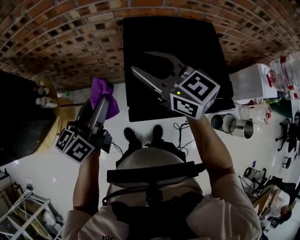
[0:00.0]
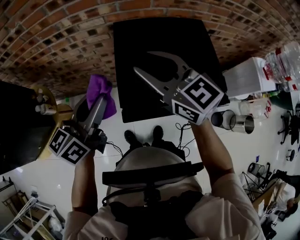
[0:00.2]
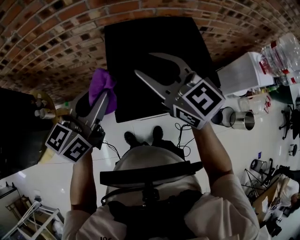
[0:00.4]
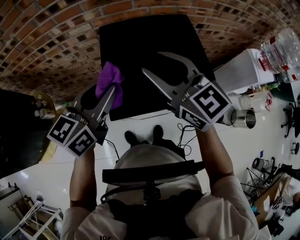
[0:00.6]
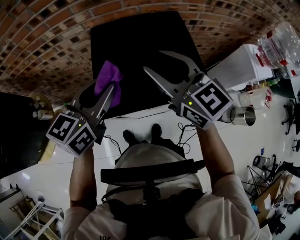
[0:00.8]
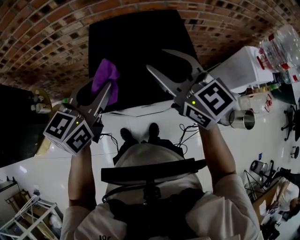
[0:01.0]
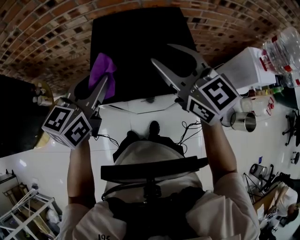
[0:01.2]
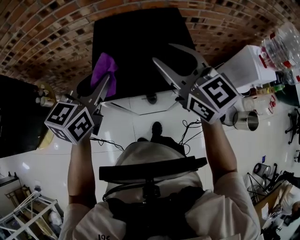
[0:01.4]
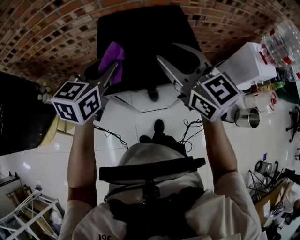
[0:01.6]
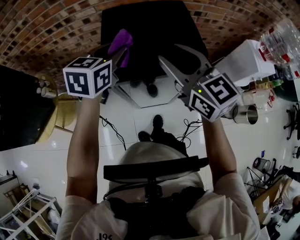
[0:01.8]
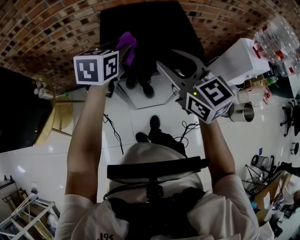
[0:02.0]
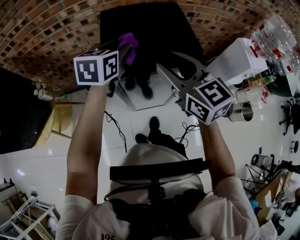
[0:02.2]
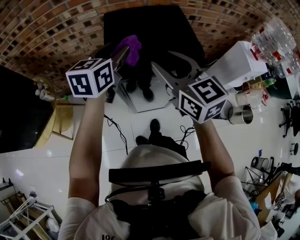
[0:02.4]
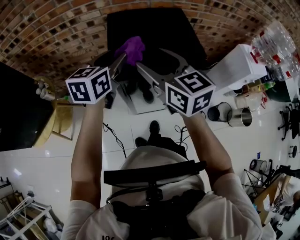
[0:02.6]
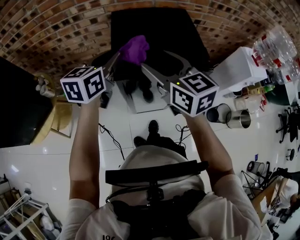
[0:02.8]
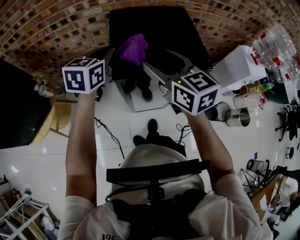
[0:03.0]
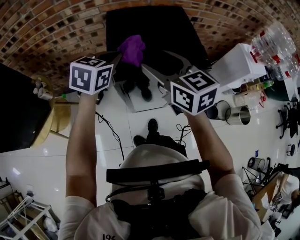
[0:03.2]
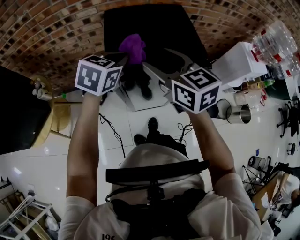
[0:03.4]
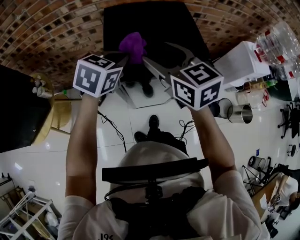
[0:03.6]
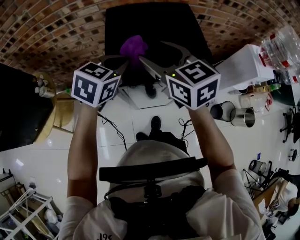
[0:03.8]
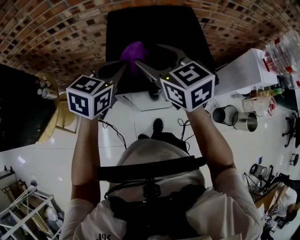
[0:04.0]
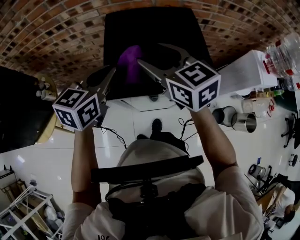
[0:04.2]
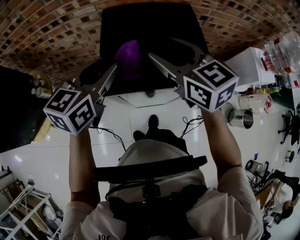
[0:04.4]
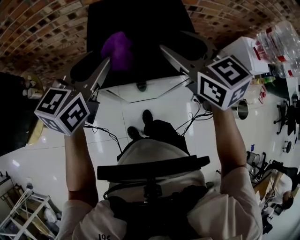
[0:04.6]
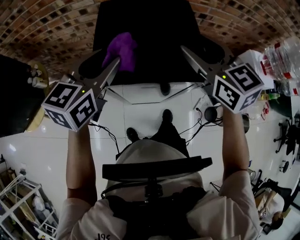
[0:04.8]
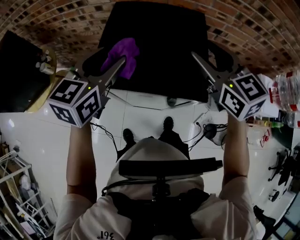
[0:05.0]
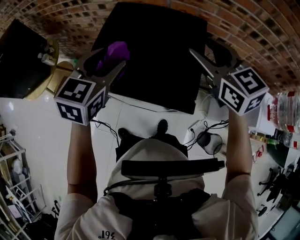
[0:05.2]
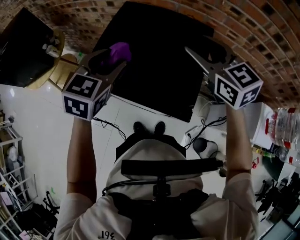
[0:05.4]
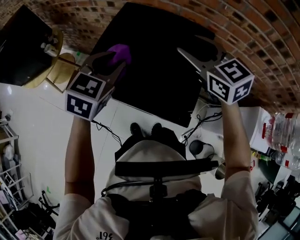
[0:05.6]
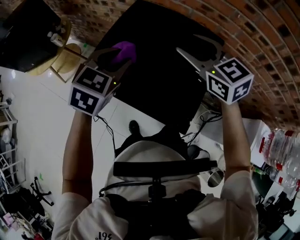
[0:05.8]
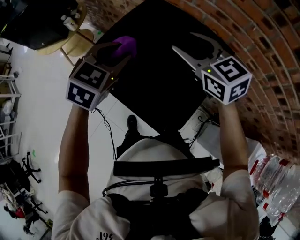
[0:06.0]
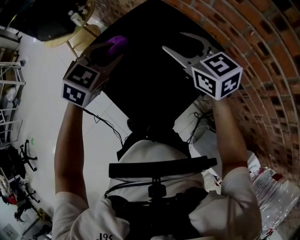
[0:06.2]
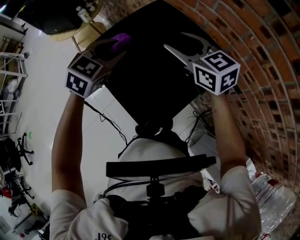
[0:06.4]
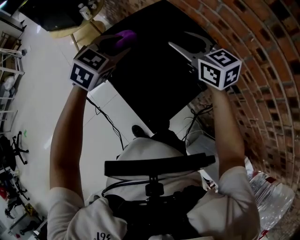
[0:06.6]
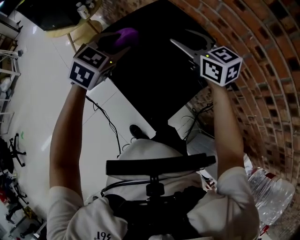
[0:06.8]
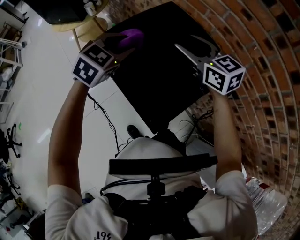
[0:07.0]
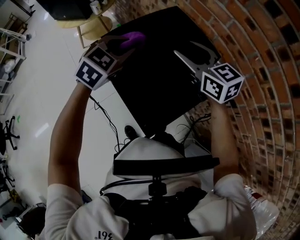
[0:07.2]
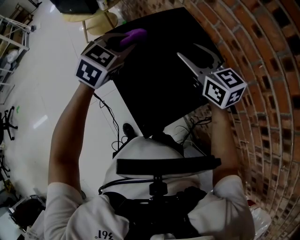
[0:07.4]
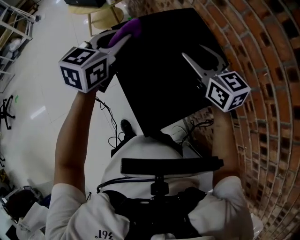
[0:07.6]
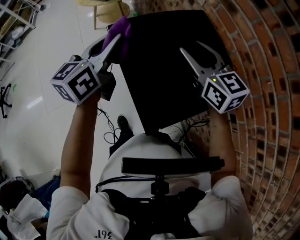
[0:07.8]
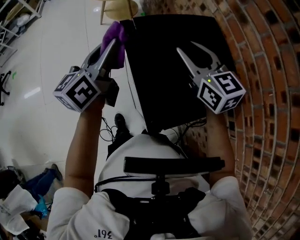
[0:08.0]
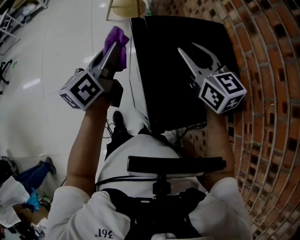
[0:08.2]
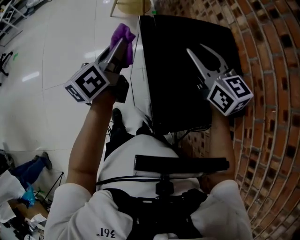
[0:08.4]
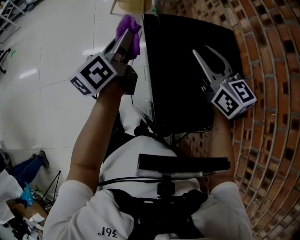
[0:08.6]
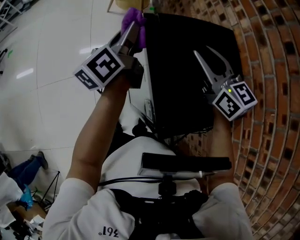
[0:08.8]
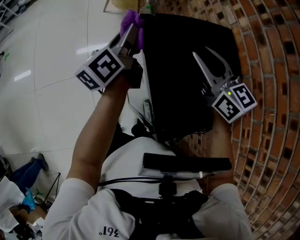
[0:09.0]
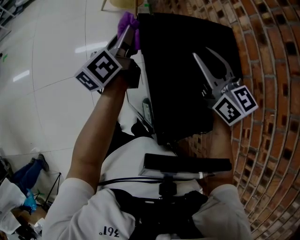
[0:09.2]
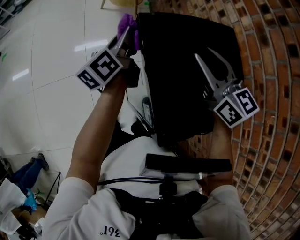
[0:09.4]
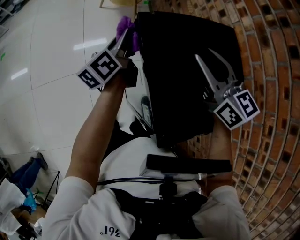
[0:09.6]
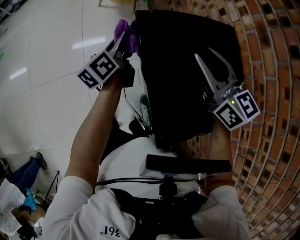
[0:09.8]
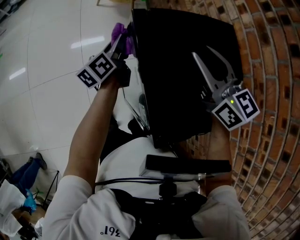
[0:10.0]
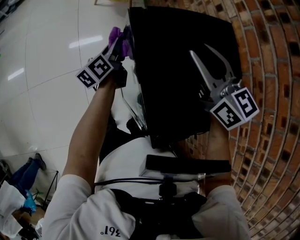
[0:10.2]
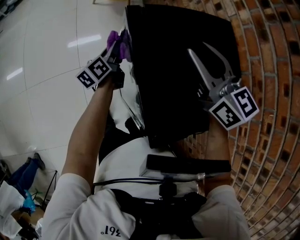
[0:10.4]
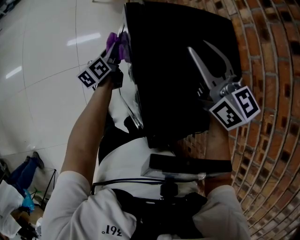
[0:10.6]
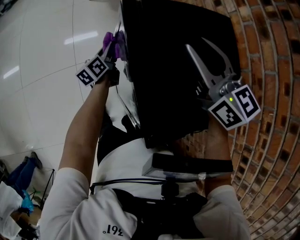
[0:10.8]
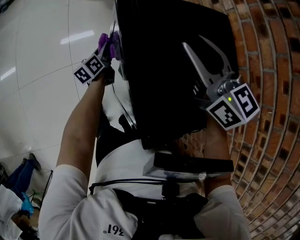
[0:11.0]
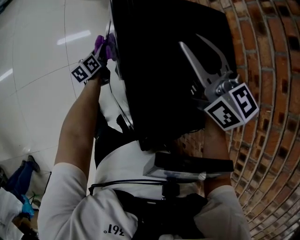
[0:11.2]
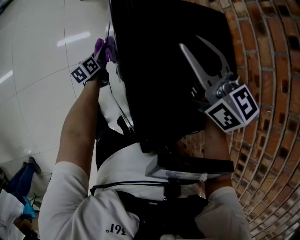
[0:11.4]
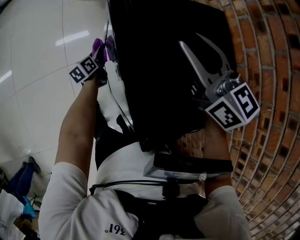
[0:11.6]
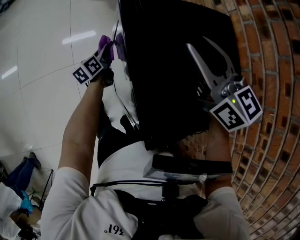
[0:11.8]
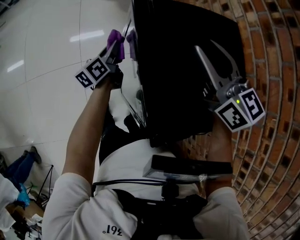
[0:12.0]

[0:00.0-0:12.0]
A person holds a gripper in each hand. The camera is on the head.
0:00.0 to 0:01.6: The left gripper heads to the right, covering roughly 15 cm, and swivels approximately 40 degrees; the right gripper shifts some 20 cm to the right and backward.
0:01.6 to 0:03.0: The two grippers go about 5 cm to the left. The left gripper closes its fingers; the right gripper opens up.
0:03.0 to 0:04.4: The right gripper is displaced forward by about 5 cm, while the left gripper opens up.
0:04.4 to 0:06.0: The left gripper ends up about 10 cm from where it was, turns by roughly 40 degrees, and opens, then closes once more, while the right gripper ends up approximately 15 cm from where it was, and swivels about 40 degrees.
0:06.0 to 0:07.6: The left gripper shifts some 5 cm to the left, and swivels about 40 degrees.
0:07.6 to 0:09.0: The right gripper is displaced to the left by roughly 10 cm. The left gripper goes about 15 cm to the left and downward, and swivels roughly 60 degrees.
0:09.0 to 0:10.4: The left gripper heads downward, covering approximately 20 cm.
0:10.4 to 0:12.0: The left gripper travels downward and back again, about 15 cm each way.

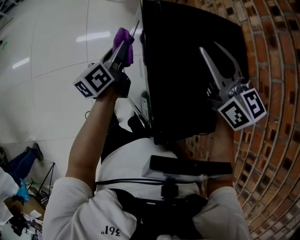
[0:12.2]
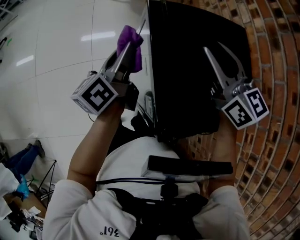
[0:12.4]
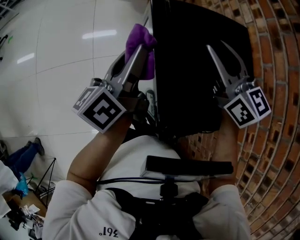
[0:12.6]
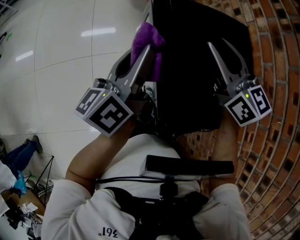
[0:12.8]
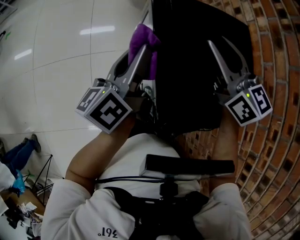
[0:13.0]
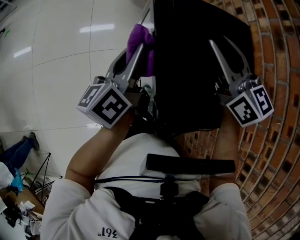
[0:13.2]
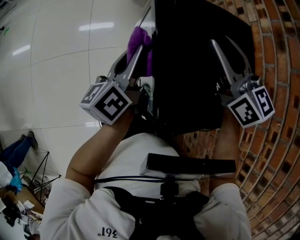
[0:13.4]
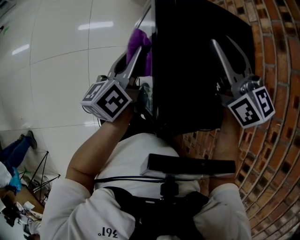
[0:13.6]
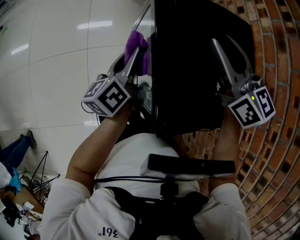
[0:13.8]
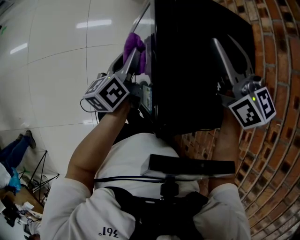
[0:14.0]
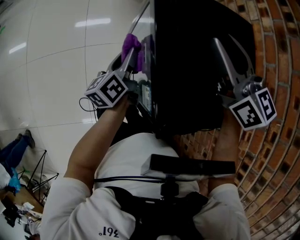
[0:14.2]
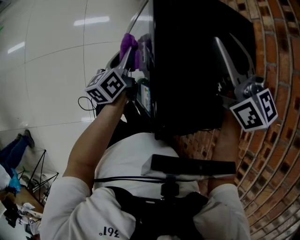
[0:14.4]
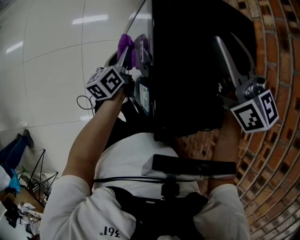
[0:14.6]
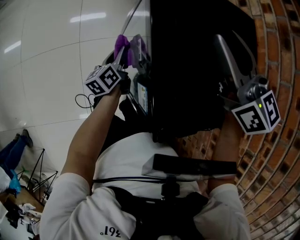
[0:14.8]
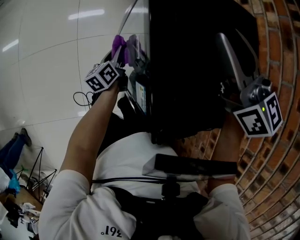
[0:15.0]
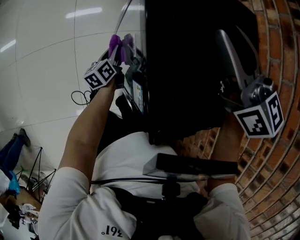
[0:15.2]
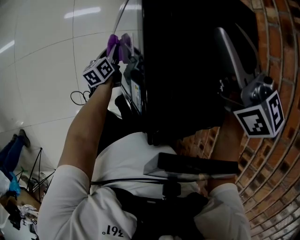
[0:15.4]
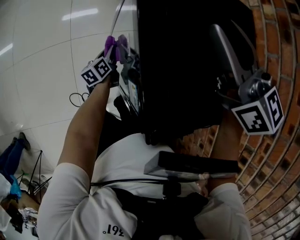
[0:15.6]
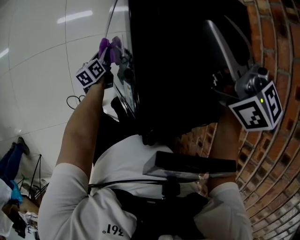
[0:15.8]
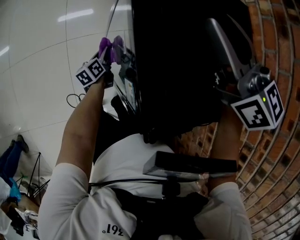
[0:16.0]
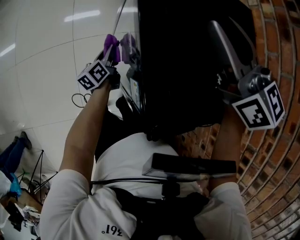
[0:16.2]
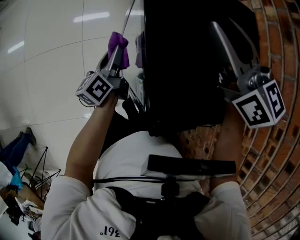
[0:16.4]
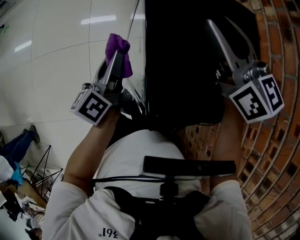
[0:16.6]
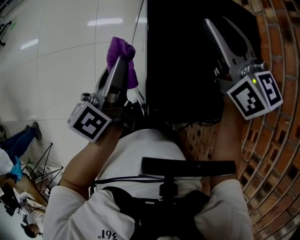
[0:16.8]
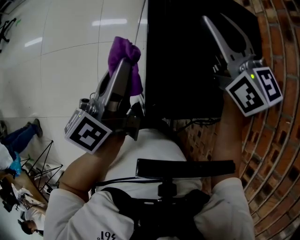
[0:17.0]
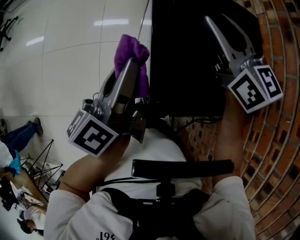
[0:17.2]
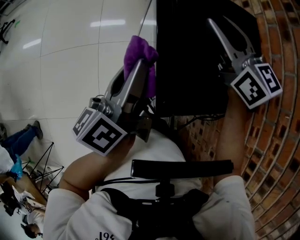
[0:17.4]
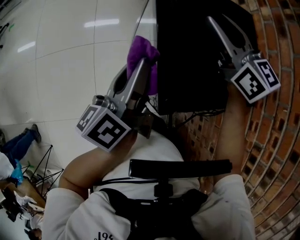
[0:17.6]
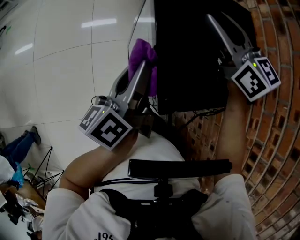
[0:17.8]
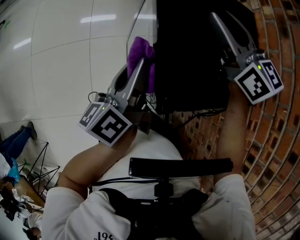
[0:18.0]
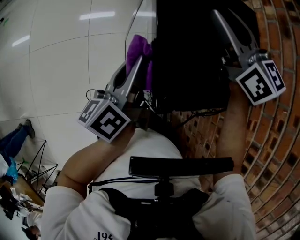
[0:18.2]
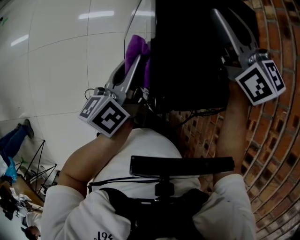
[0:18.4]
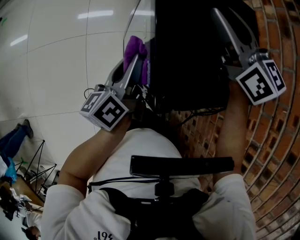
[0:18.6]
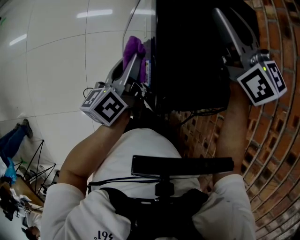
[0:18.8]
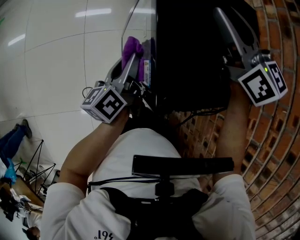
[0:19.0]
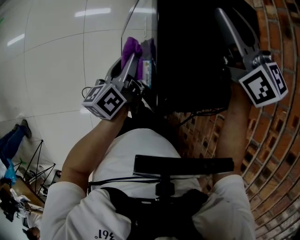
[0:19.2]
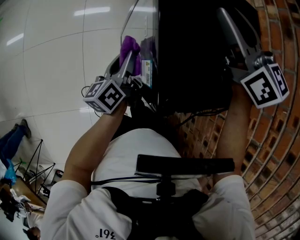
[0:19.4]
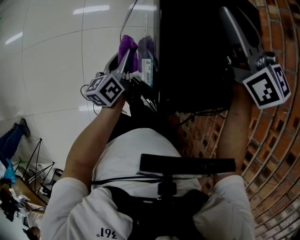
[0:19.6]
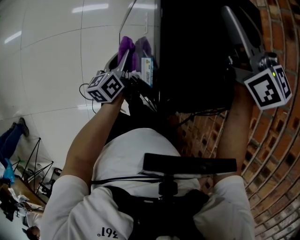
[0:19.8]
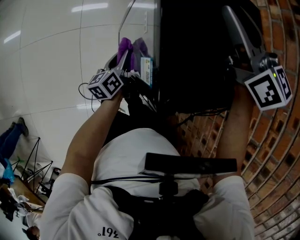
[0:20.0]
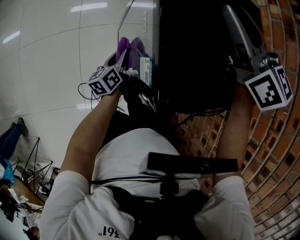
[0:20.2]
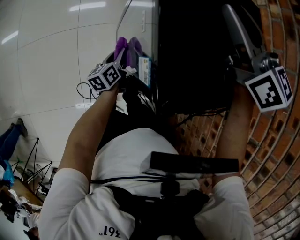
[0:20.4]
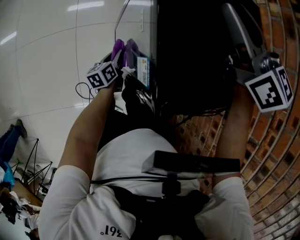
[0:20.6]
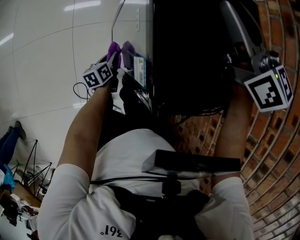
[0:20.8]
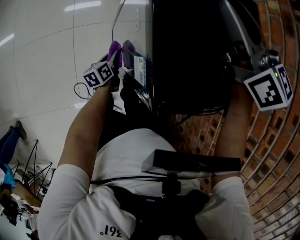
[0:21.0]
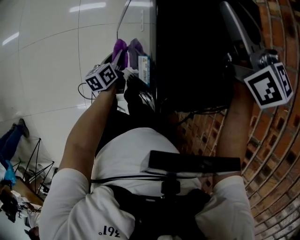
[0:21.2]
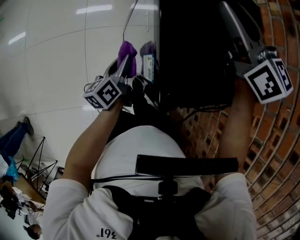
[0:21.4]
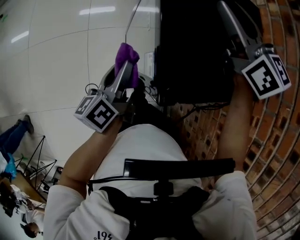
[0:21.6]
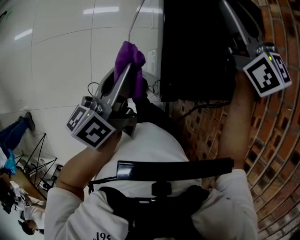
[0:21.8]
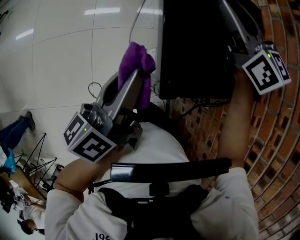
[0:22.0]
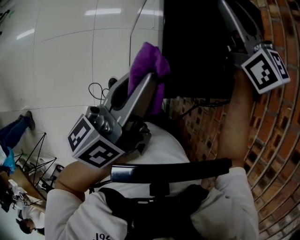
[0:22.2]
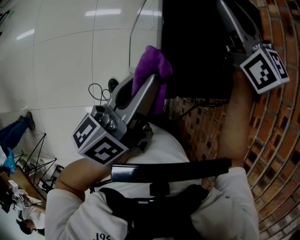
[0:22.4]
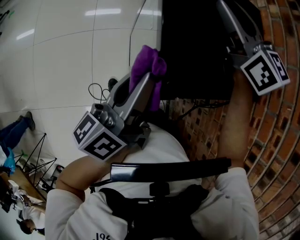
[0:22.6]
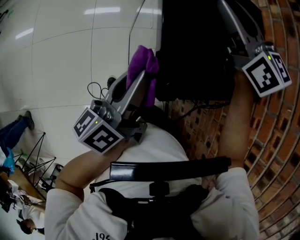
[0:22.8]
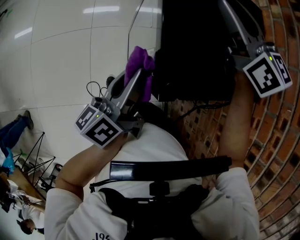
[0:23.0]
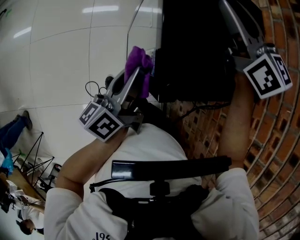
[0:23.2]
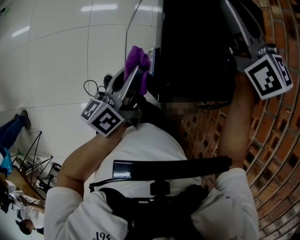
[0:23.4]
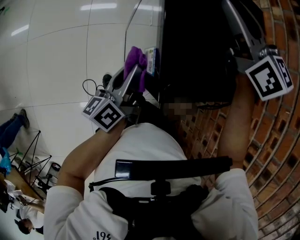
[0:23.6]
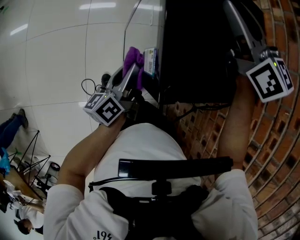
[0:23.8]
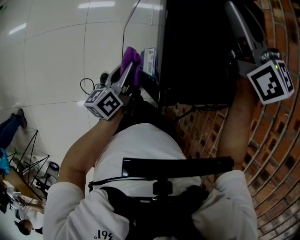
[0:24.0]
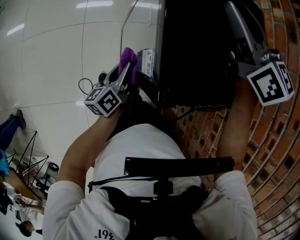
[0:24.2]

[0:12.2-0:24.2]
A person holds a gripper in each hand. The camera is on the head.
0:12.2 to 0:13.8: The left gripper goes roughly 10 cm backward, and travels upward and back again, approximately 15 cm each way.
0:13.8 to 0:15.2: The left gripper goes some 25 cm downward.
0:15.2 to 0:16.6: The left gripper travels upward by about 25 cm, and turns by about 20 degrees.
0:16.6 to 0:18.2: The left gripper travels backward and upward by some 10 cm.
0:18.2 to 0:19.8: The left gripper goes some 20 cm downward.
0:19.8 to 0:21.2: The left gripper is displaced downward by roughly 10 cm.
0:21.2 to 0:22.6: The left gripper moves upward, about 35 cm, and turns by roughly 30 degrees.
0:22.6 to 0:24.2: The left gripper goes about 25 cm downward.
